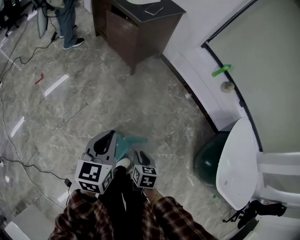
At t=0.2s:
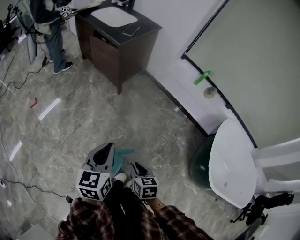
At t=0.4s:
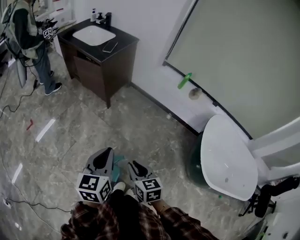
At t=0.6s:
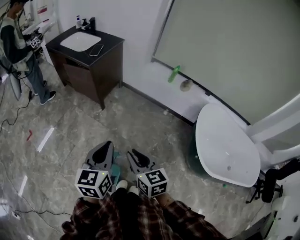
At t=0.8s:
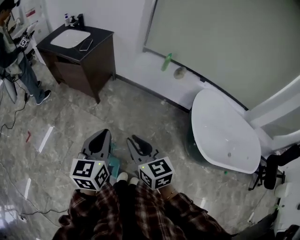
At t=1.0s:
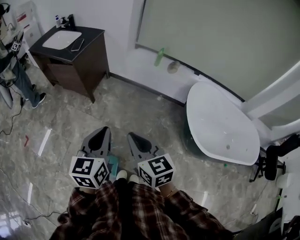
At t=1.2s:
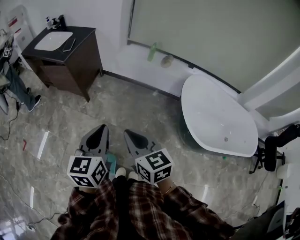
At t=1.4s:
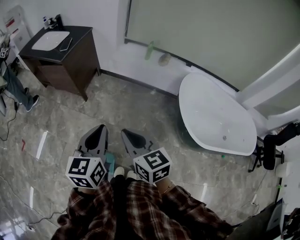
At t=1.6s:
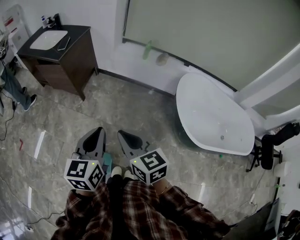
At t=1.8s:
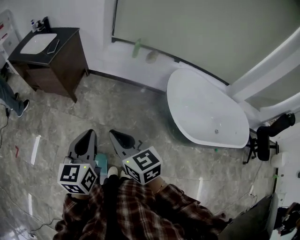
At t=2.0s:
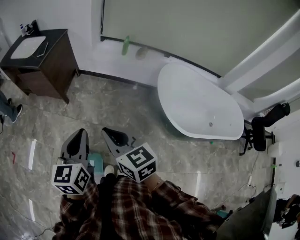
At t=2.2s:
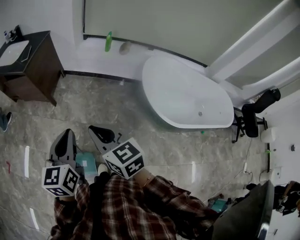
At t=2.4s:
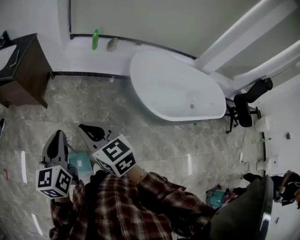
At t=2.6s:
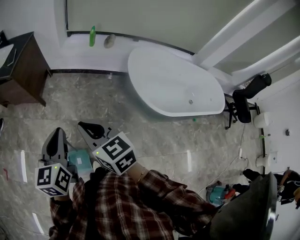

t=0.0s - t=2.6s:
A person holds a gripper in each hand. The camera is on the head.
t=0.0s - t=1.2s: The left gripper travels to the right and upward by about 25 cm, and turns by about 20 degrees. Meanwhile the right gripper moves upward and to the right, roughly 35 cm, and tilts its fingers approximately 30 degrees upward.
t=1.2s - t=2.6s: The grippers stay close to where they were, moving slightly.

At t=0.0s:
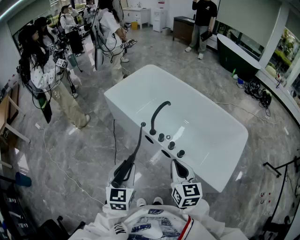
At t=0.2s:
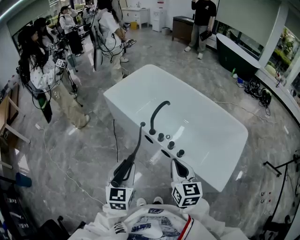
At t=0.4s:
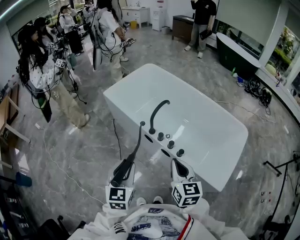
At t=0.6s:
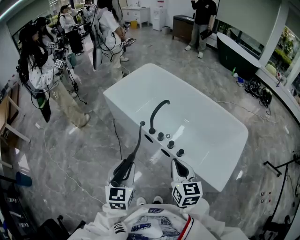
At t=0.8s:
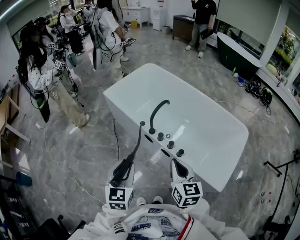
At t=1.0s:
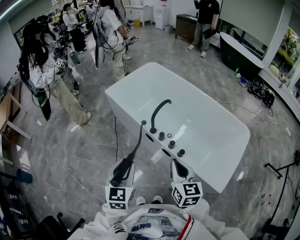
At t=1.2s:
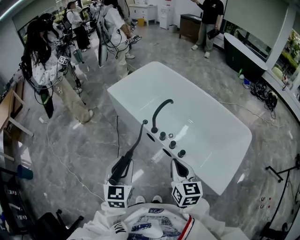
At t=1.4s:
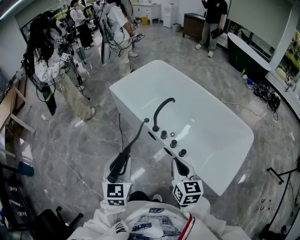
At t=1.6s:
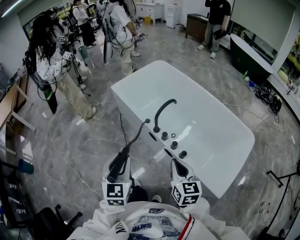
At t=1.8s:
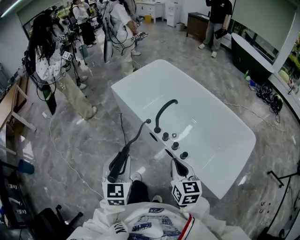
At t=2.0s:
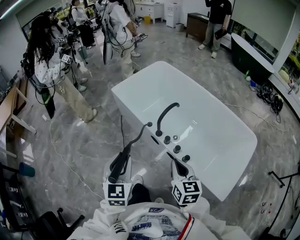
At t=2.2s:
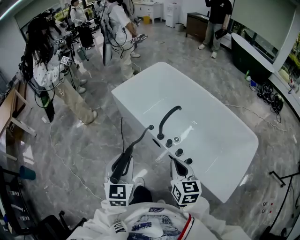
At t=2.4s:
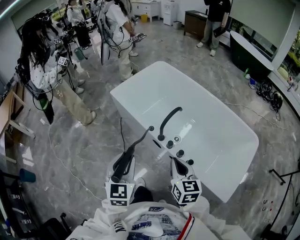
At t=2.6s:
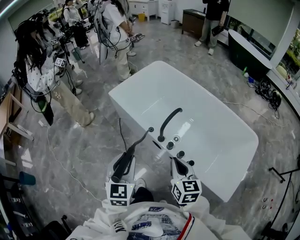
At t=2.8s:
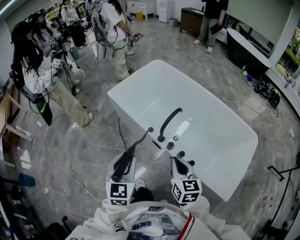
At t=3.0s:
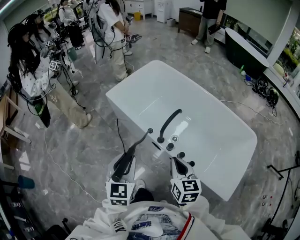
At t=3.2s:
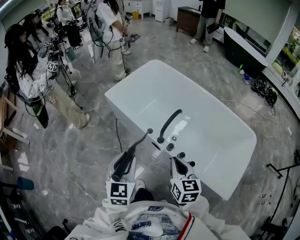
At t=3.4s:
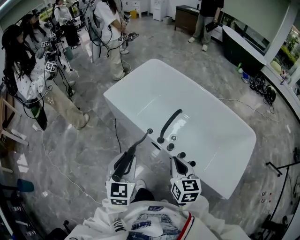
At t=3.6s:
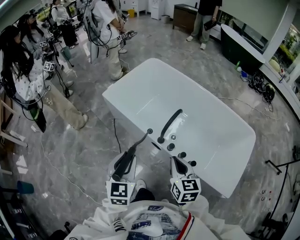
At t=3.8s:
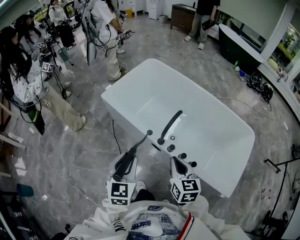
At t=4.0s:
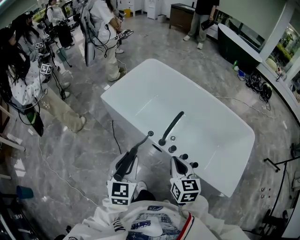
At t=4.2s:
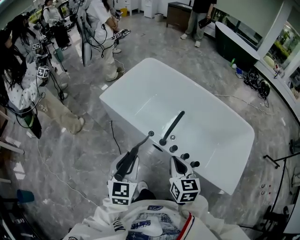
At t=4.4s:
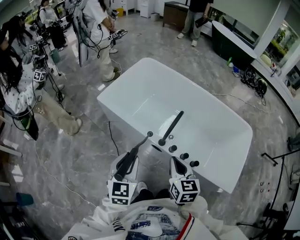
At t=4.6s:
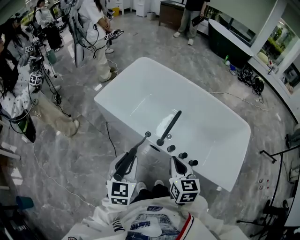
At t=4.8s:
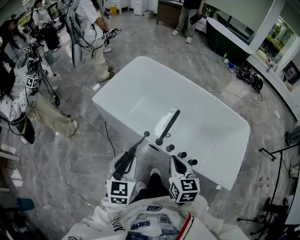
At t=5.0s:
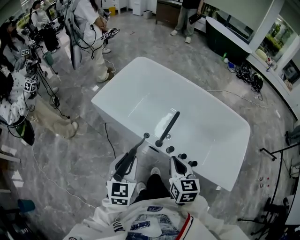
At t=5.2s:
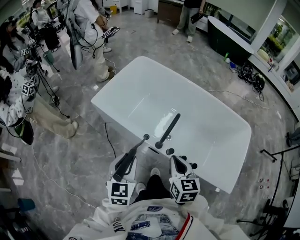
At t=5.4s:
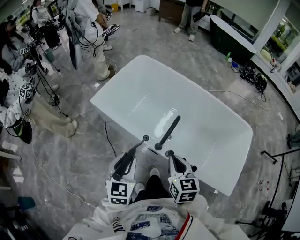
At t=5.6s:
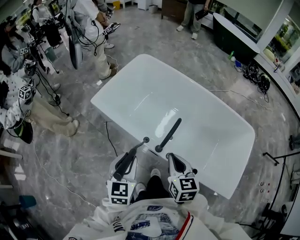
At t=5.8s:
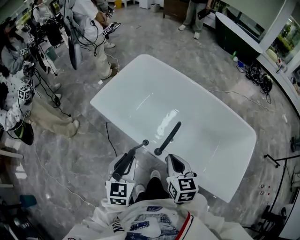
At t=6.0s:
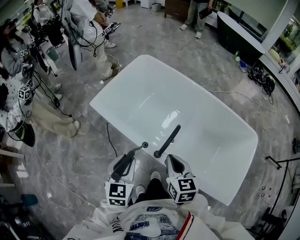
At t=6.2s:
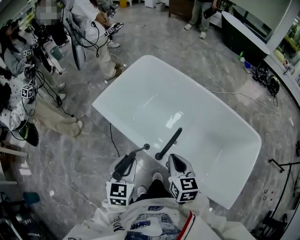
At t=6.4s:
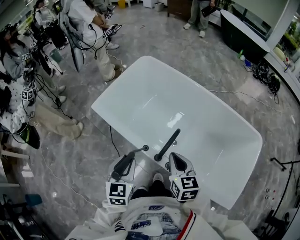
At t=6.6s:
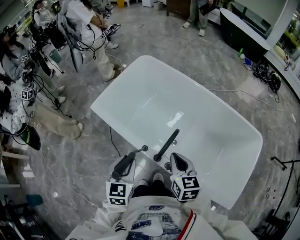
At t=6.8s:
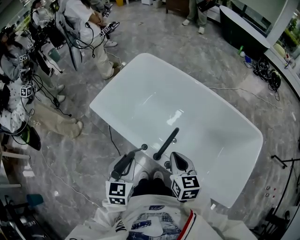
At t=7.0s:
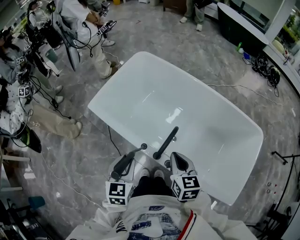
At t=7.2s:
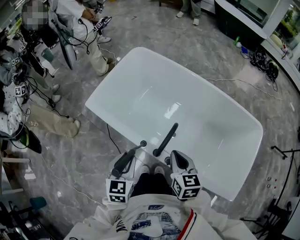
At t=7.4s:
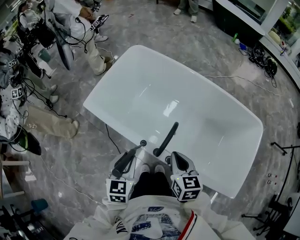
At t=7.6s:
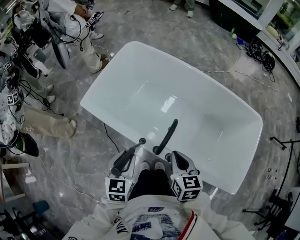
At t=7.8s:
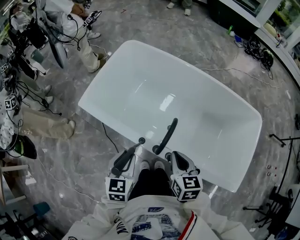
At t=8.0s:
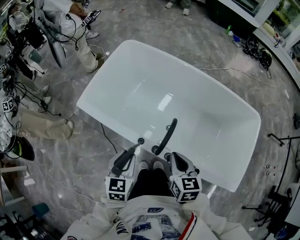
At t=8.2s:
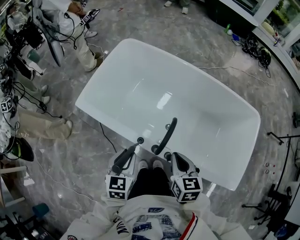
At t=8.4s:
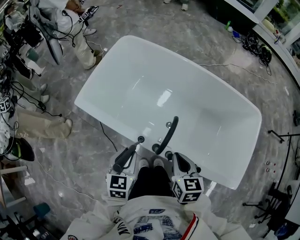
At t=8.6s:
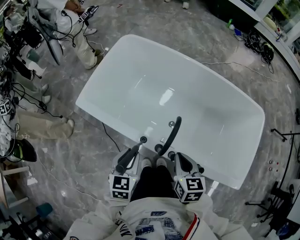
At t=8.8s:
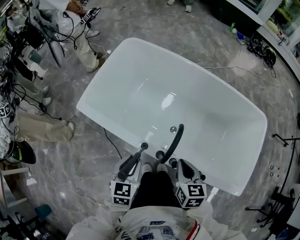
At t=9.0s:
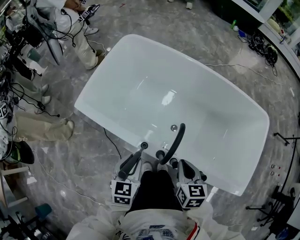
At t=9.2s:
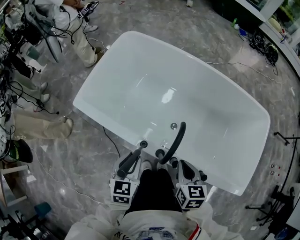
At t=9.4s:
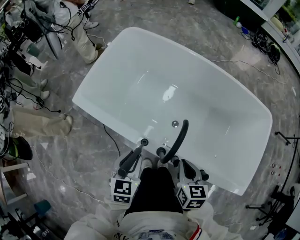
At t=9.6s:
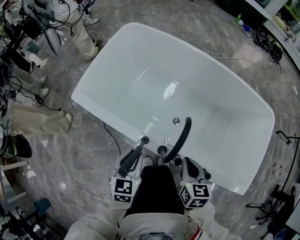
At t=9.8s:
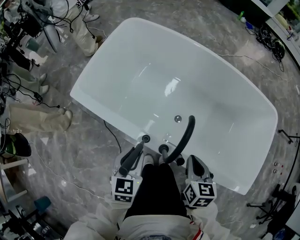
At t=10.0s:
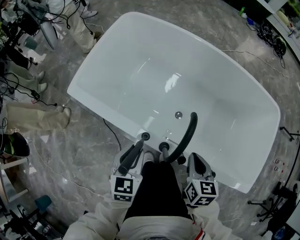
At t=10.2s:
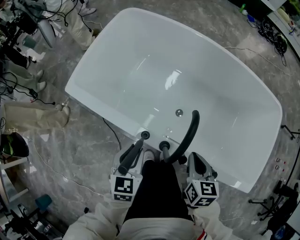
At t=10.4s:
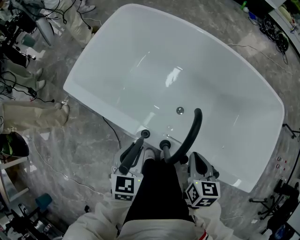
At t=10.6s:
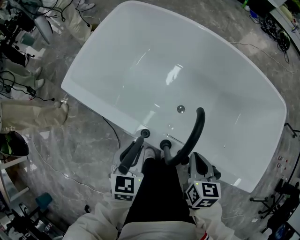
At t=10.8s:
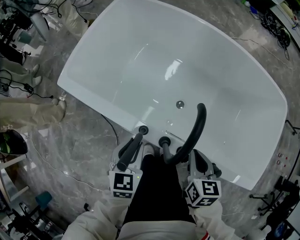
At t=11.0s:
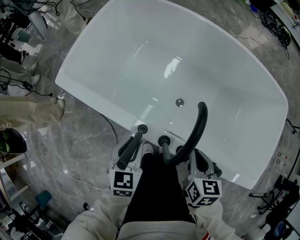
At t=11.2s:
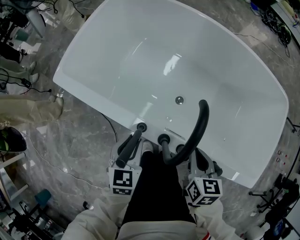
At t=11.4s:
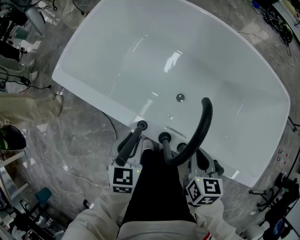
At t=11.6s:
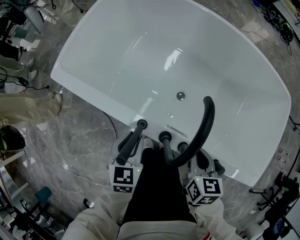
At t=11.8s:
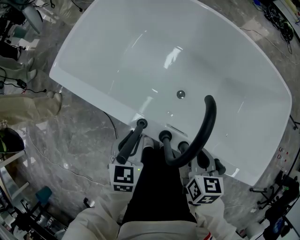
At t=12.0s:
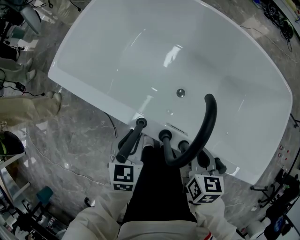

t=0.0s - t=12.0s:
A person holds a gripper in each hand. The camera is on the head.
t=0.0s - t=1.6s: The grippers make only small movements.
t=1.6s - t=3.0s: The left gripper moves forward, roughly 10 cm. The right gripper travels forward and to the left by some 15 cm.
t=3.0s - t=4.4s: The right gripper travels to the left by some 5 cm, while the left gripper shifts roughly 5 cm forward.
t=4.4s - t=6.0s: Both grippers move forward, some 10 cm.
t=6.0s - t=7.6s: The right gripper shifts by some 5 cm. The left gripper moves downward, about 5 cm.
t=7.6s - t=9.0s: The grippers both shift downward by about 5 cm.
t=9.0s - t=10.4s: The two grippers go approximately 10 cm downward.
t=10.4s - t=12.0s: The left gripper moves downward, approximately 5 cm.

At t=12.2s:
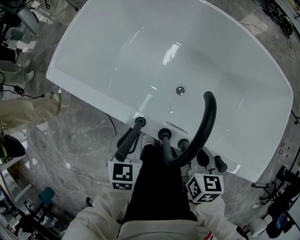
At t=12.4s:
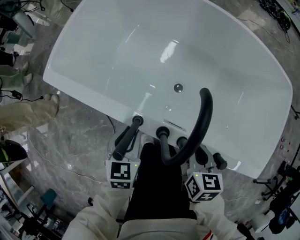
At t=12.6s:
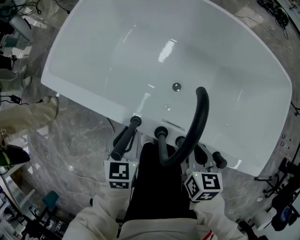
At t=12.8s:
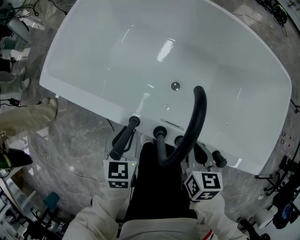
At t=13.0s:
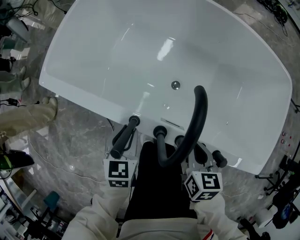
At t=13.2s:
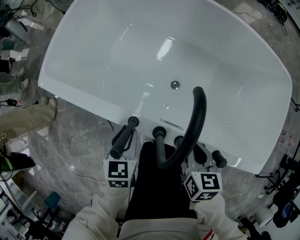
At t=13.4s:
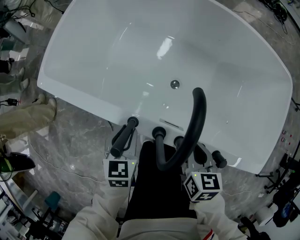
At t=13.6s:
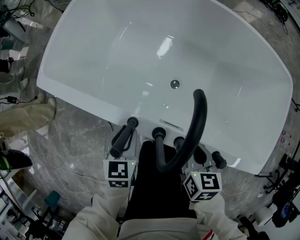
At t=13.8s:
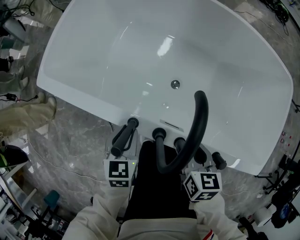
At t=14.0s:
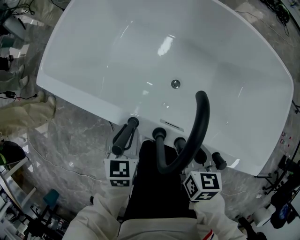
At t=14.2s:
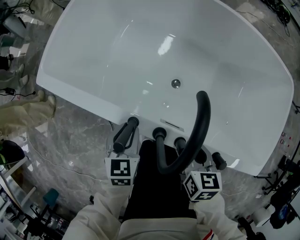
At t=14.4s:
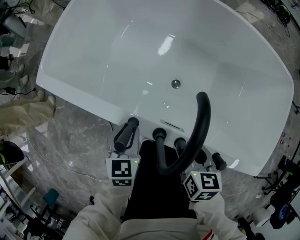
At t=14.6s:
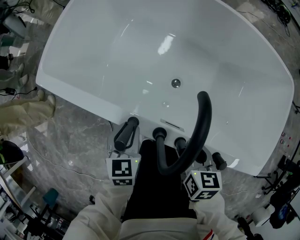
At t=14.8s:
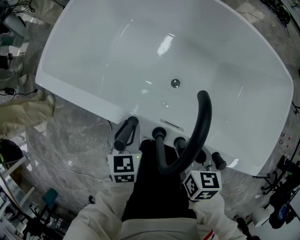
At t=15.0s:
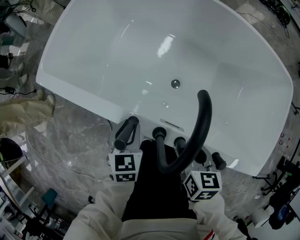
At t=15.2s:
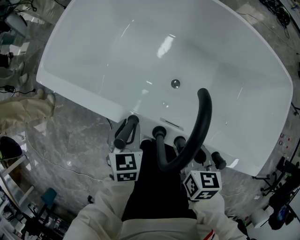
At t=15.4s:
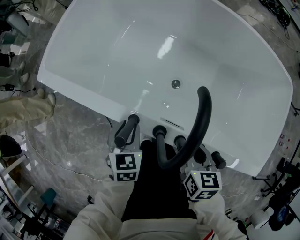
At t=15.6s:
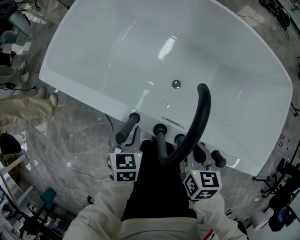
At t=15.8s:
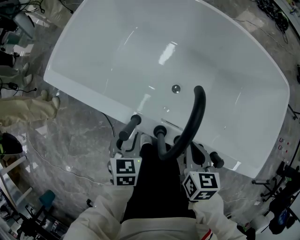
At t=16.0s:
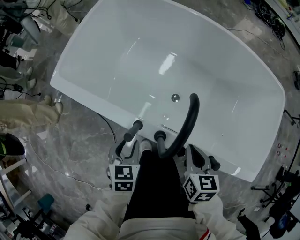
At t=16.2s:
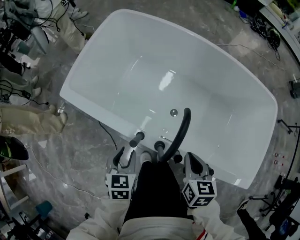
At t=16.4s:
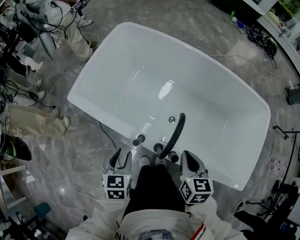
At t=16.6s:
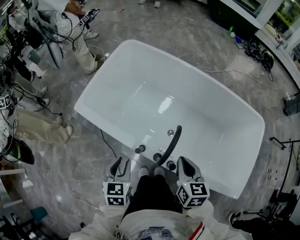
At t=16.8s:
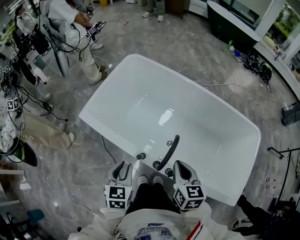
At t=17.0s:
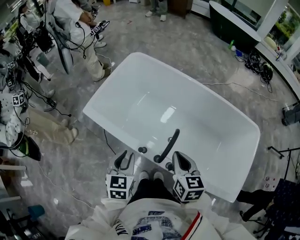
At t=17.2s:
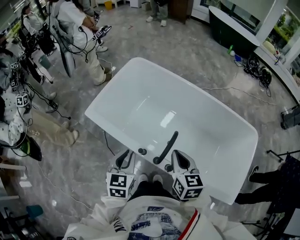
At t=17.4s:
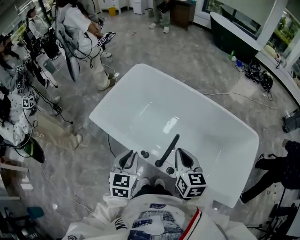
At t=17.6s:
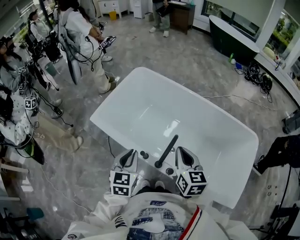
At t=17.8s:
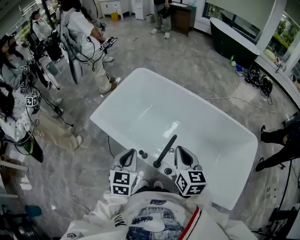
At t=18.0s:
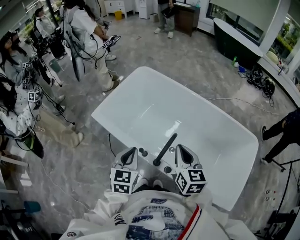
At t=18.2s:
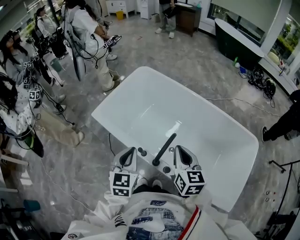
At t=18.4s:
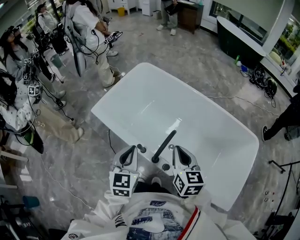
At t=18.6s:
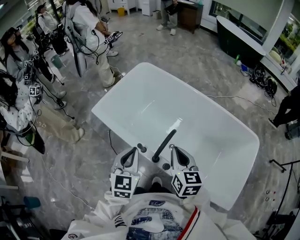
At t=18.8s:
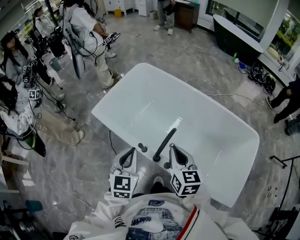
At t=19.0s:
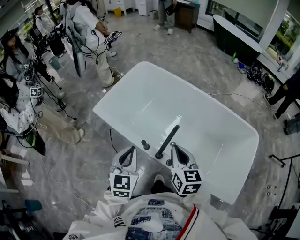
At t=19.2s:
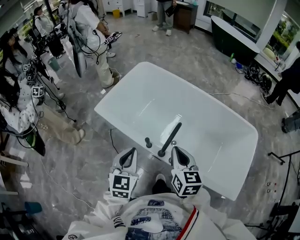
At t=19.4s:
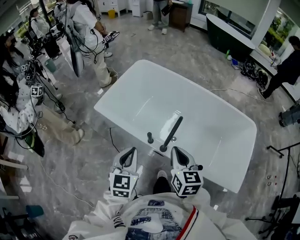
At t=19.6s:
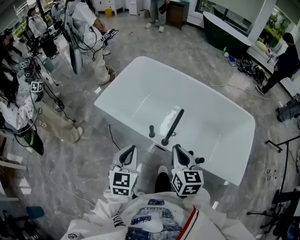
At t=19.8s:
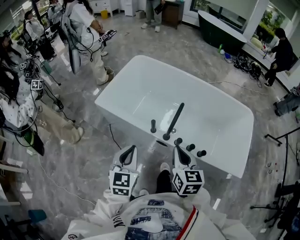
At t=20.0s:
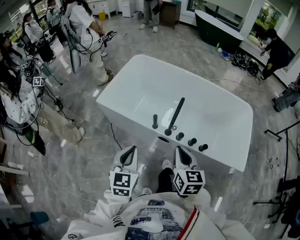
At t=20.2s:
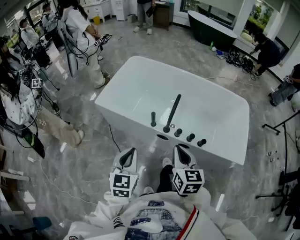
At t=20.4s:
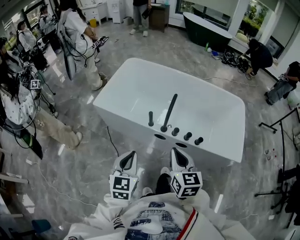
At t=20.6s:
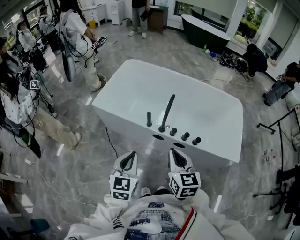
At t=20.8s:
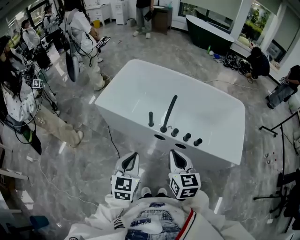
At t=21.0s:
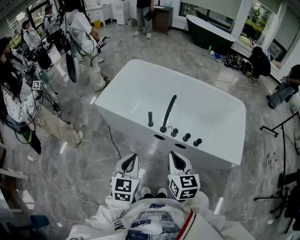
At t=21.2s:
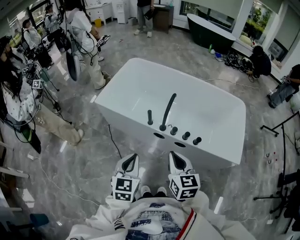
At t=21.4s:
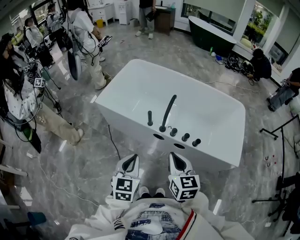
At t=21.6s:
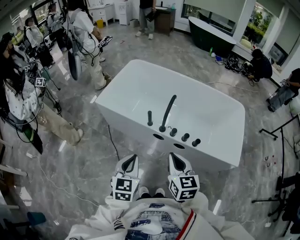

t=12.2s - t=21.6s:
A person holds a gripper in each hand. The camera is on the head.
t=12.2s - t=15.4s: There are only small adjustments of the grippers.
t=15.4s - t=17.0s: The grippers both shift upward by some 25 cm. The right gripper changes its angle by approximately 20 degrees.
t=17.0s - t=18.4s: The left gripper goes some 10 cm upward, and closes its fingers, while the right gripper is displaced upward by roughly 5 cm.
t=18.4s - t=20.0s: The two grippers go about 25 cm backward and to the left.
t=20.0s - t=21.6s: The grippers both shift backward by roughly 10 cm.
